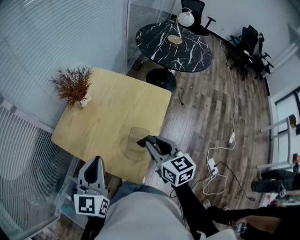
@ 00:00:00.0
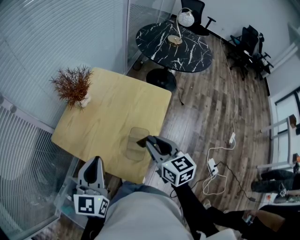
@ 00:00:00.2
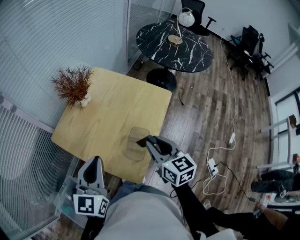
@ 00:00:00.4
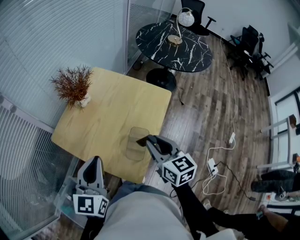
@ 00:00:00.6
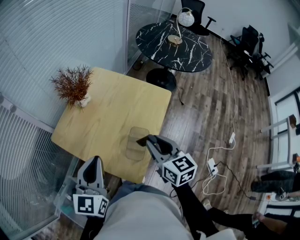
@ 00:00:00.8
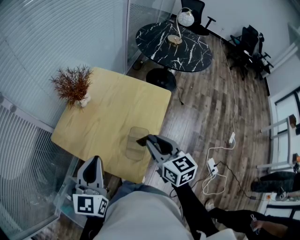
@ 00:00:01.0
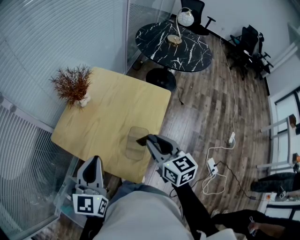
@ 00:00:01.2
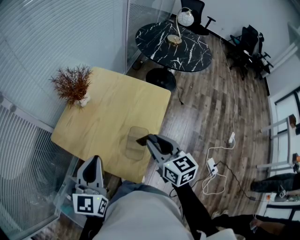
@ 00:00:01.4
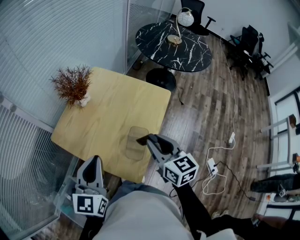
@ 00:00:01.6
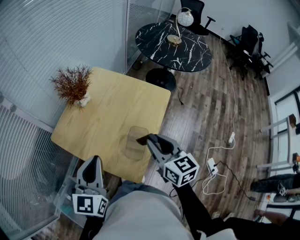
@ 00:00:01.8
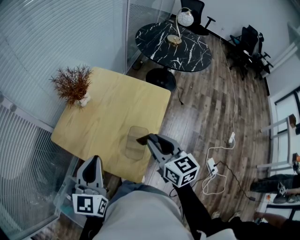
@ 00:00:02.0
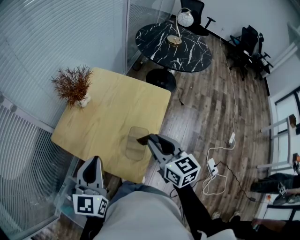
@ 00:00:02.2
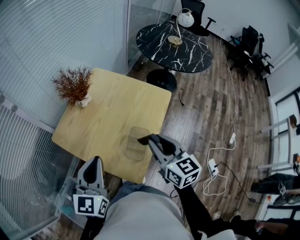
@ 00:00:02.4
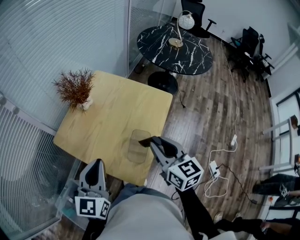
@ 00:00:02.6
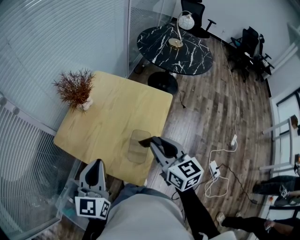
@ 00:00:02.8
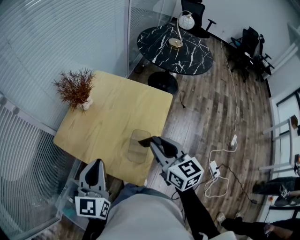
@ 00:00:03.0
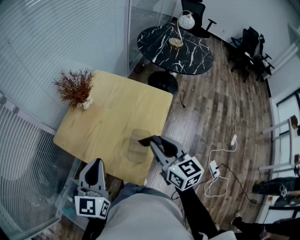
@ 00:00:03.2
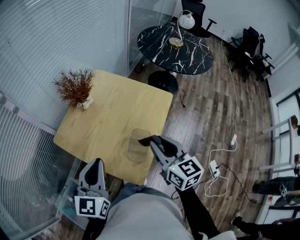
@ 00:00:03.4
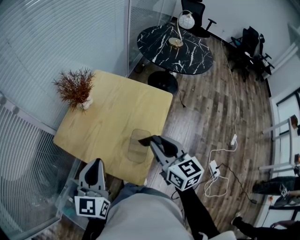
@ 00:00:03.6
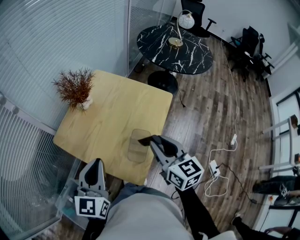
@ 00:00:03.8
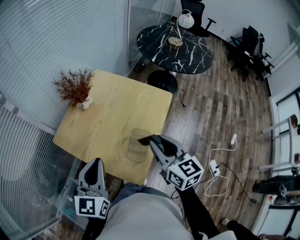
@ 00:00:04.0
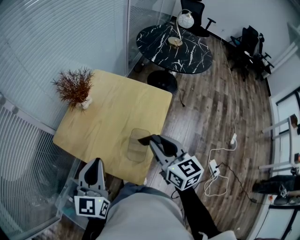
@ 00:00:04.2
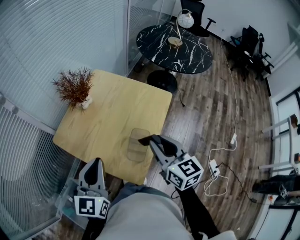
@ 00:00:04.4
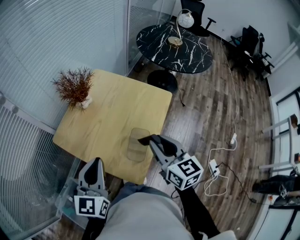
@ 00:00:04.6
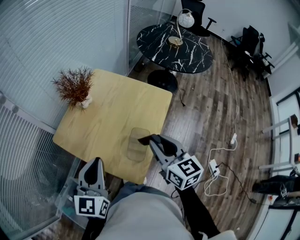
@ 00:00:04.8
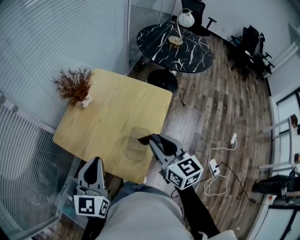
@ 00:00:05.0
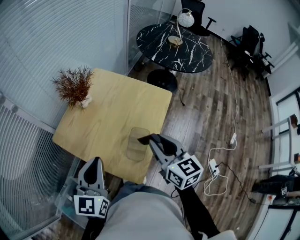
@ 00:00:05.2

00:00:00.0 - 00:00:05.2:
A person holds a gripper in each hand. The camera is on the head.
00:00:00.0 - 00:00:03.4: The grippers make only small movements.
00:00:03.4 - 00:00:05.2: Both grippers stay about where they are.

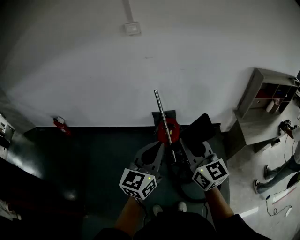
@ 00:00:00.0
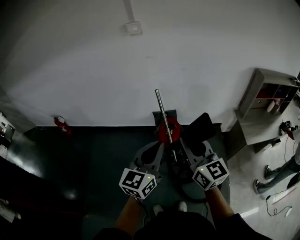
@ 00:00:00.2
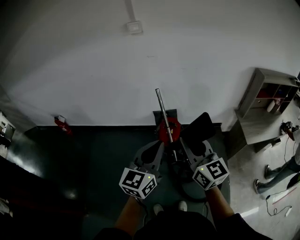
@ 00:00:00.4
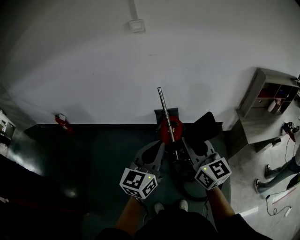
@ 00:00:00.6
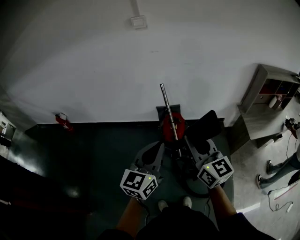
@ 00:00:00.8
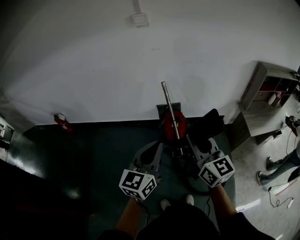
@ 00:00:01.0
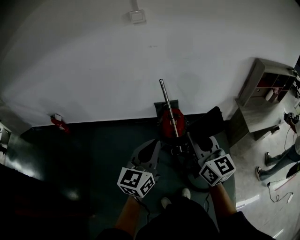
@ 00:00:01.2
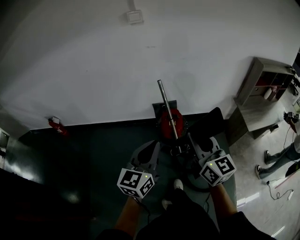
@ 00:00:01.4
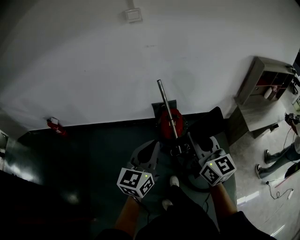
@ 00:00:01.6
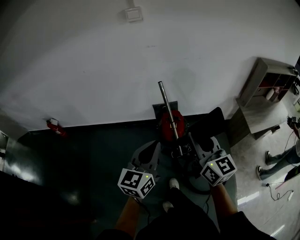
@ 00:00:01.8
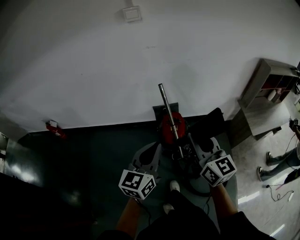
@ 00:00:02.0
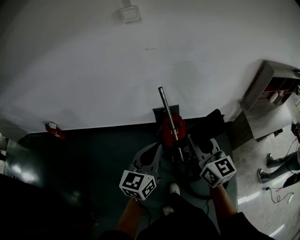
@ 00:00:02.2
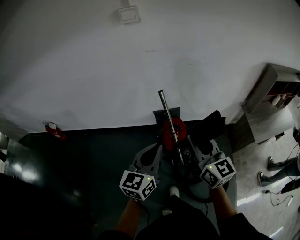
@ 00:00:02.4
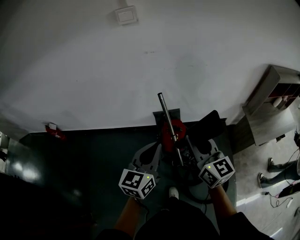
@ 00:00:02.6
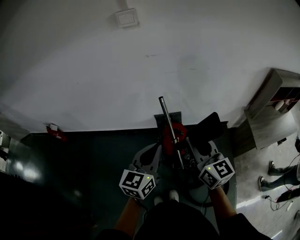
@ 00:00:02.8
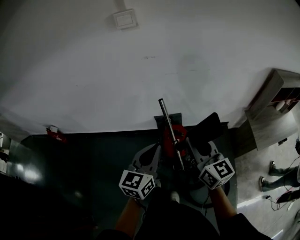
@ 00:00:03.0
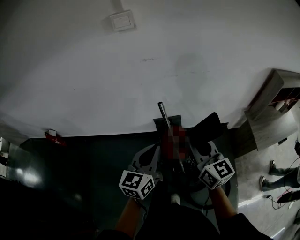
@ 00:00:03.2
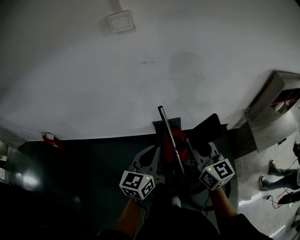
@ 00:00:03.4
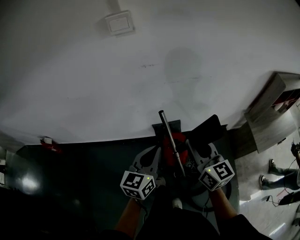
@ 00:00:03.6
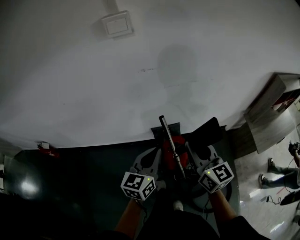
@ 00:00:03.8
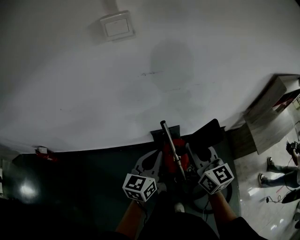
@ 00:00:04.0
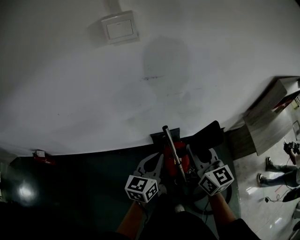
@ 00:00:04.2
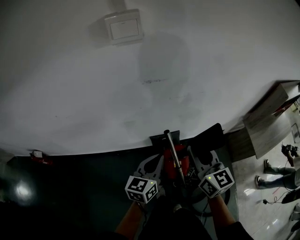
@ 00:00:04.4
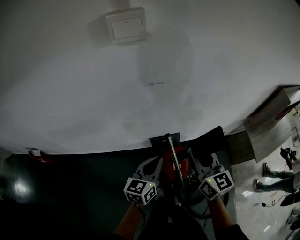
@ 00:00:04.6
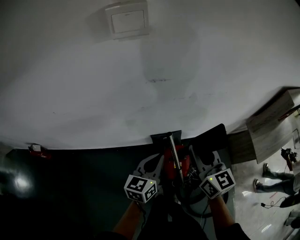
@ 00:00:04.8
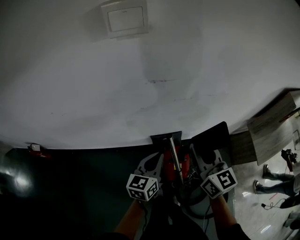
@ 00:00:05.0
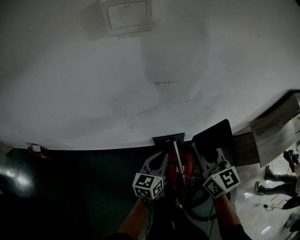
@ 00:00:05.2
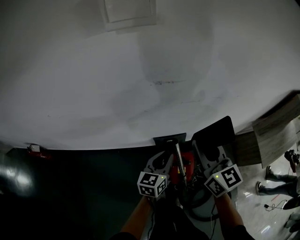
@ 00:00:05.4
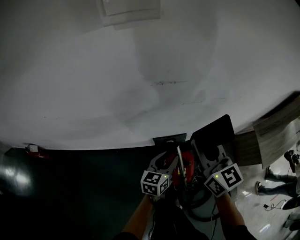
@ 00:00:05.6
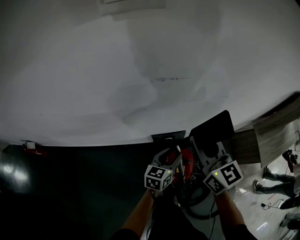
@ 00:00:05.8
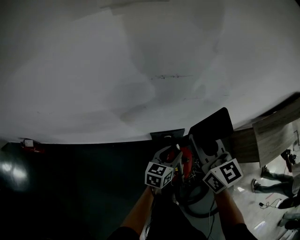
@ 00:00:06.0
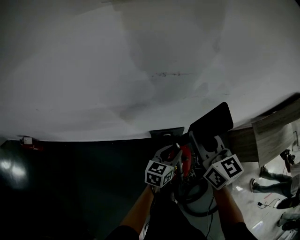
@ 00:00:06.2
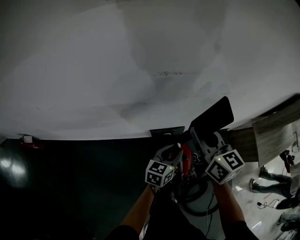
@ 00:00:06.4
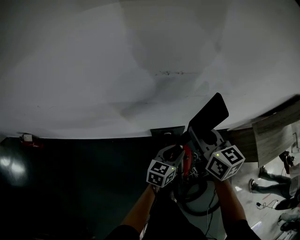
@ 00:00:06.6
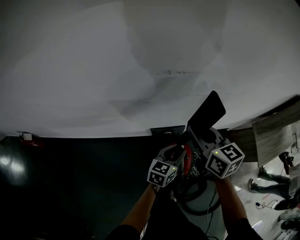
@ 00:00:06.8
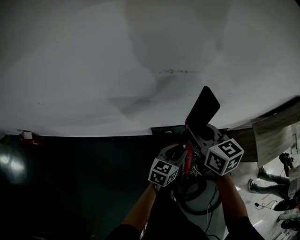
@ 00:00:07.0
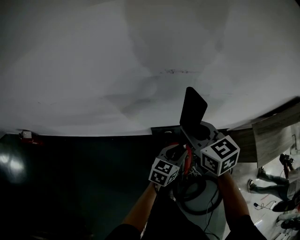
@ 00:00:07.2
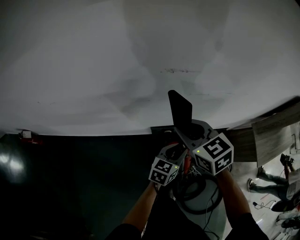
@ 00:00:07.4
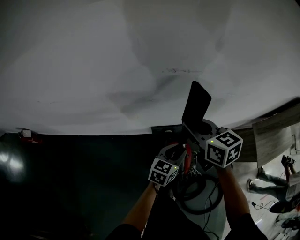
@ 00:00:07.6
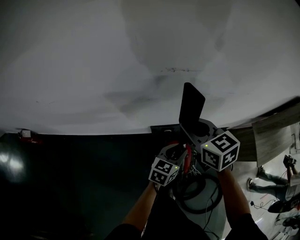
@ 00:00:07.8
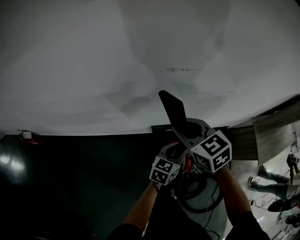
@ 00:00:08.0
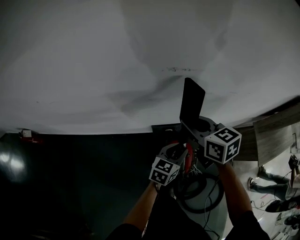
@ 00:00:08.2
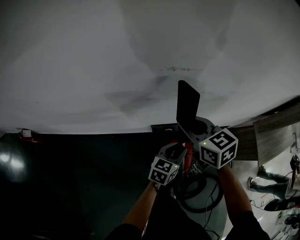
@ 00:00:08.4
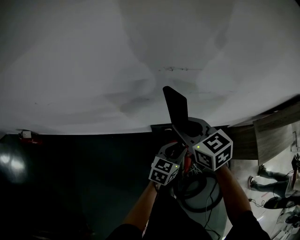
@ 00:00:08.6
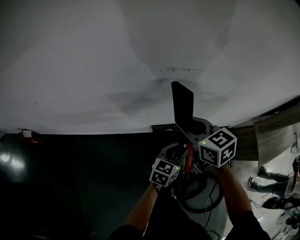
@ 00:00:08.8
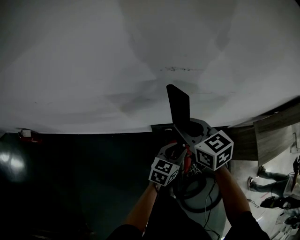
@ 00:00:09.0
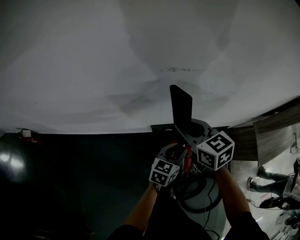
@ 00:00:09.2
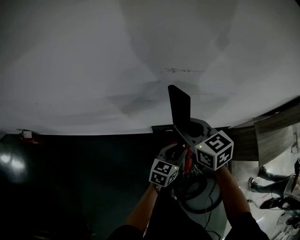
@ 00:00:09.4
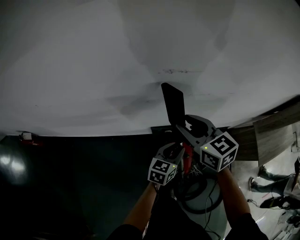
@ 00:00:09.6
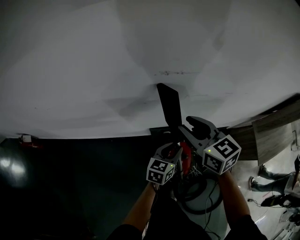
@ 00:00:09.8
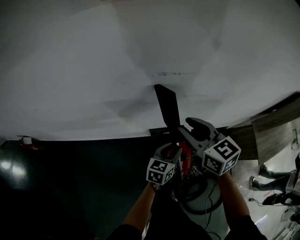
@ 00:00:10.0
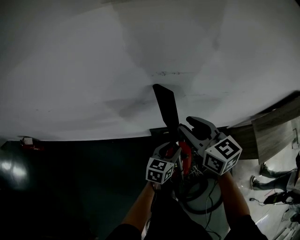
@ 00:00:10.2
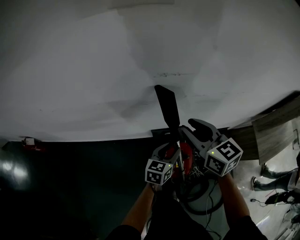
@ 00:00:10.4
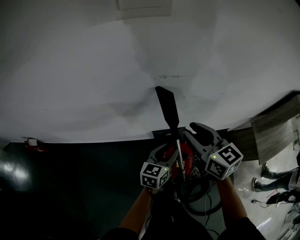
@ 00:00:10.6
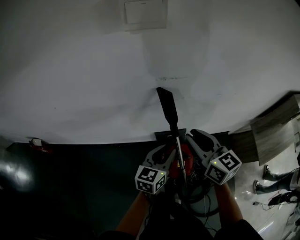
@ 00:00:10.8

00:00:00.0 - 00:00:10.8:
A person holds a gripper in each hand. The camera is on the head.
00:00:00.0 - 00:00:01.6: The right gripper moves to the left, roughly 5 cm; the left gripper heads to the left, covering about 10 cm.
00:00:01.6 - 00:00:03.0: The two grippers go about 20 cm forward.
00:00:03.0 - 00:00:04.6: The left gripper heads forward and downward, covering approximately 25 cm. The right gripper heads forward, covering about 20 cm.
00:00:04.6 - 00:00:06.2: The right gripper is displaced forward and downward by some 15 cm. The left gripper goes some 20 cm downward and forward, and opens up.
00:00:06.2 - 00:00:07.8: The right gripper heads to the left, covering some 5 cm, and swivels roughly 30 degrees.
00:00:07.8 - 00:00:09.2: The grippers make only small movements.
00:00:09.2 - 00:00:10.8: The right gripper heads upward and backward, covering some 15 cm, and turns by about 20 degrees. Meanwhile the left gripper travels upward and to the left by some 15 cm.

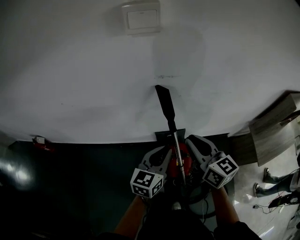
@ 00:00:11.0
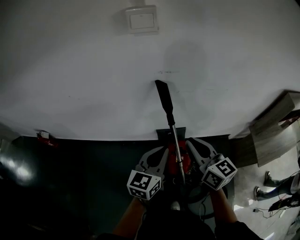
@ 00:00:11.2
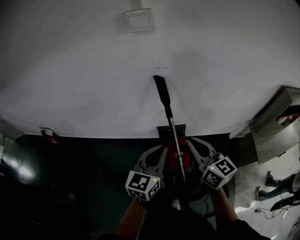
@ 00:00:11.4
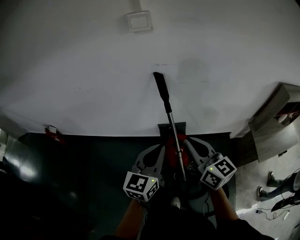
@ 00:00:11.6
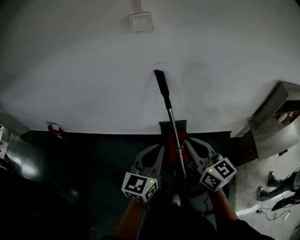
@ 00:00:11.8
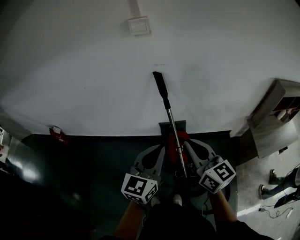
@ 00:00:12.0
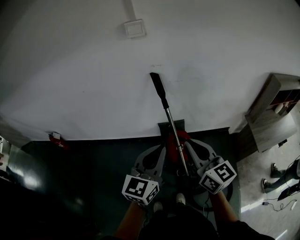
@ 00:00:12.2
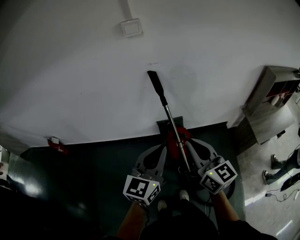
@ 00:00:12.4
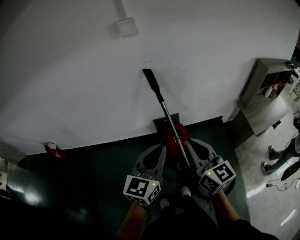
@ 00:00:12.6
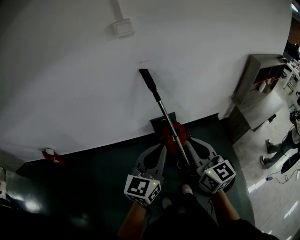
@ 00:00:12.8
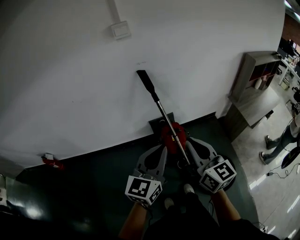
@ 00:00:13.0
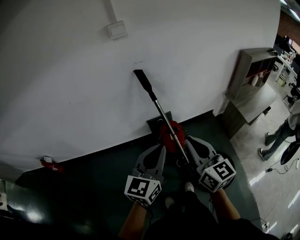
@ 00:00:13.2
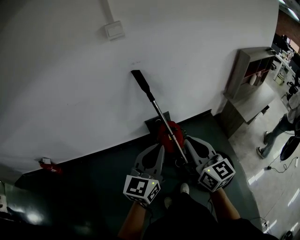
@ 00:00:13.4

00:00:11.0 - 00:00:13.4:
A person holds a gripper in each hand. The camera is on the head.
00:00:11.0 - 00:00:12.2: The left gripper moves backward and upward, roughly 30 cm. Meanwhile the right gripper heads backward, covering about 25 cm.
00:00:12.2 - 00:00:13.4: Both grippers travel together backward, about 10 cm.

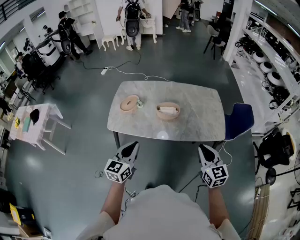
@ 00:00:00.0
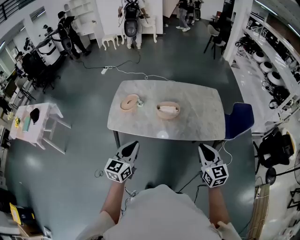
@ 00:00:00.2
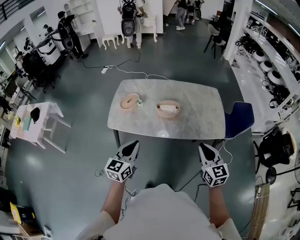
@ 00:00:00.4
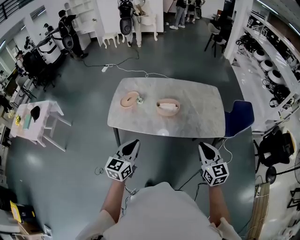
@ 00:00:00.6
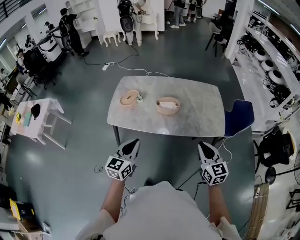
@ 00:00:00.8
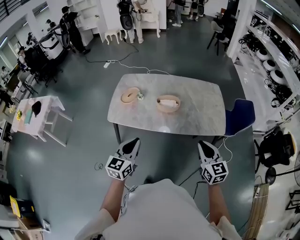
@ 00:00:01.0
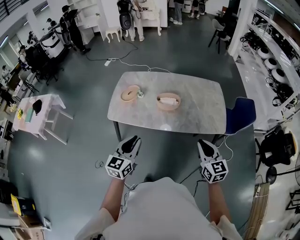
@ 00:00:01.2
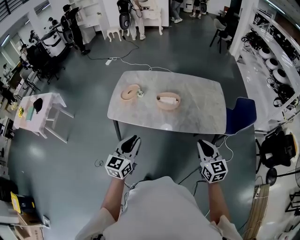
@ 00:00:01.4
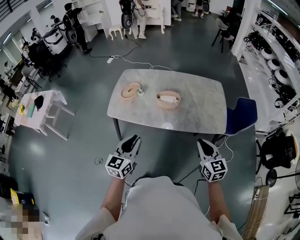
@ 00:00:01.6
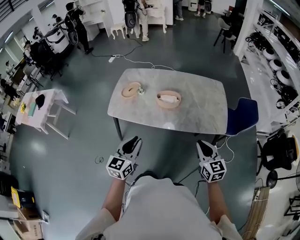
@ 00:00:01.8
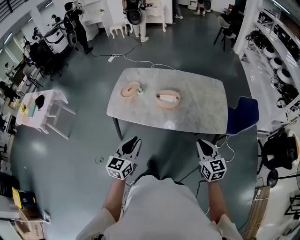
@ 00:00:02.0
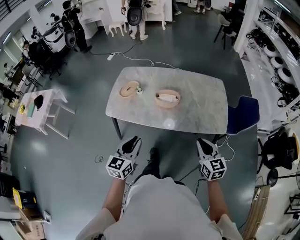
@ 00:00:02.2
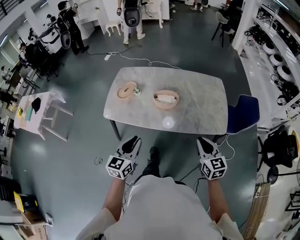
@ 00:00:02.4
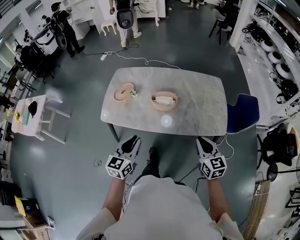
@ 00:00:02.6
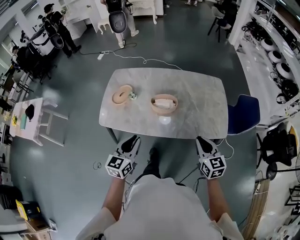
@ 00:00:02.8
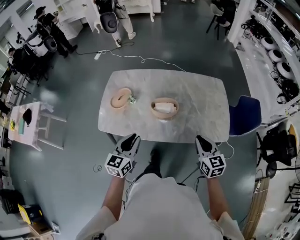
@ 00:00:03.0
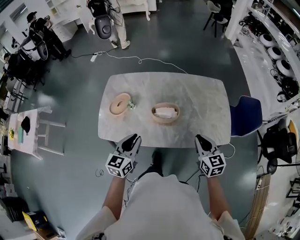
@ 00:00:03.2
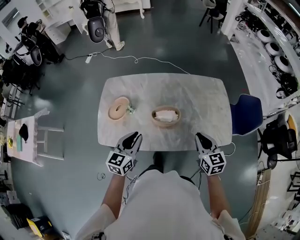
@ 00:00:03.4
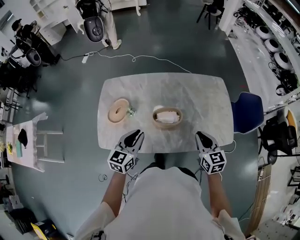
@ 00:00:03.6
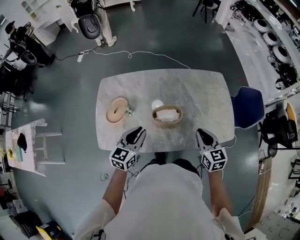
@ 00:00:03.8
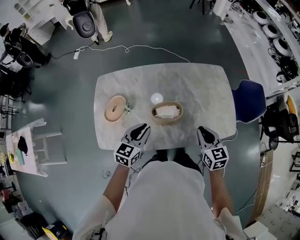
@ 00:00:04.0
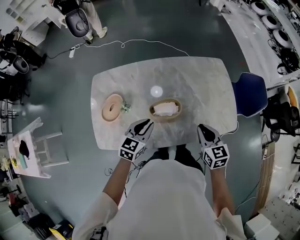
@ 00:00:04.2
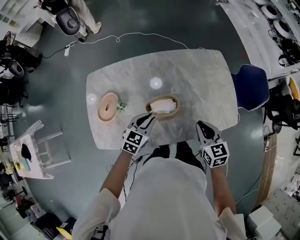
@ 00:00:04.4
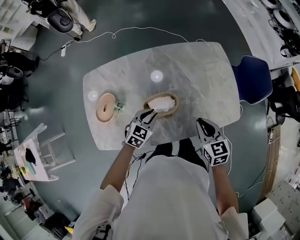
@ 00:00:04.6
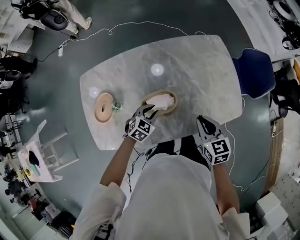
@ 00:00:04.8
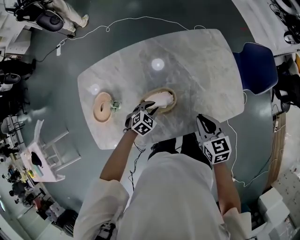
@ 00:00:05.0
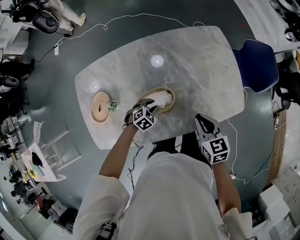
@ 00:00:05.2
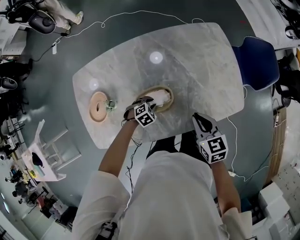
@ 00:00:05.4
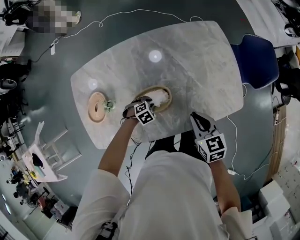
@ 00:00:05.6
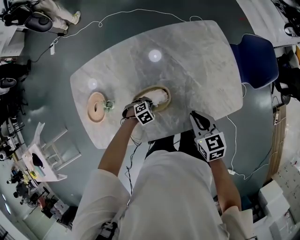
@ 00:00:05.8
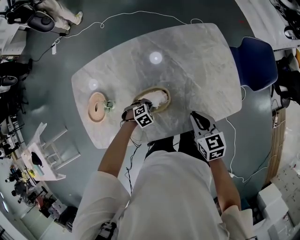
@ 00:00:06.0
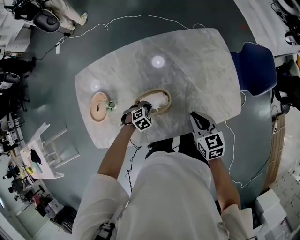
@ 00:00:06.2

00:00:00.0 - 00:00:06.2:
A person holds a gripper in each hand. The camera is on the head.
00:00:00.0 - 00:00:01.6: The left gripper travels to the right by about 5 cm, while the right gripper shifts by approximately 5 cm.
00:00:01.6 - 00:00:03.2: Both grippers move forward, roughly 25 cm.
00:00:03.2 - 00:00:04.6: The left gripper shifts some 30 cm forward and downward, and changes its angle by approximately 40 degrees, while the right gripper heads forward and downward, covering some 15 cm.
00:00:04.6 - 00:00:06.2: The right gripper travels downward by some 5 cm. Meanwhile the left gripper is displaced downward by about 15 cm, and tips its fingers downward by some 30 degrees.
